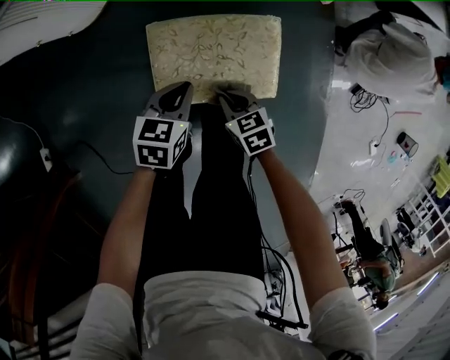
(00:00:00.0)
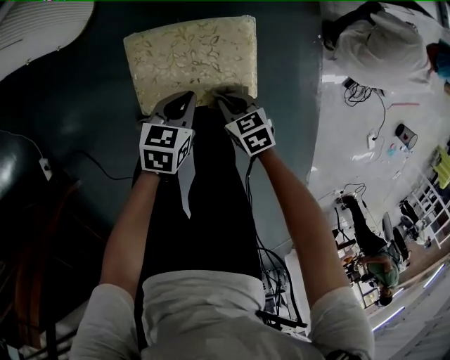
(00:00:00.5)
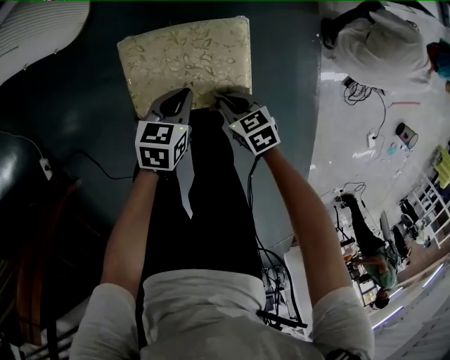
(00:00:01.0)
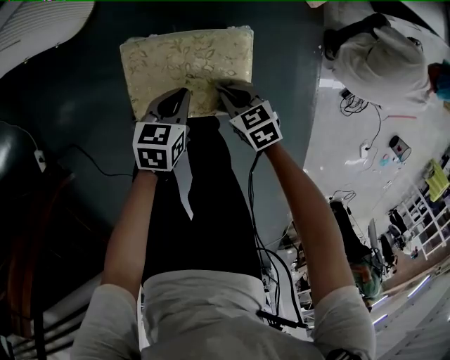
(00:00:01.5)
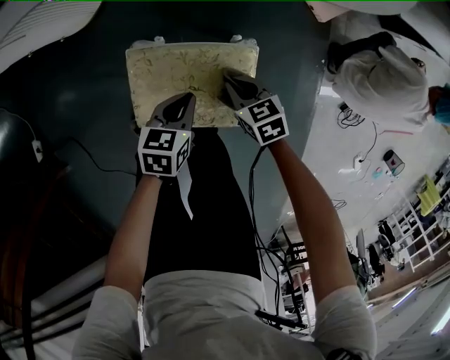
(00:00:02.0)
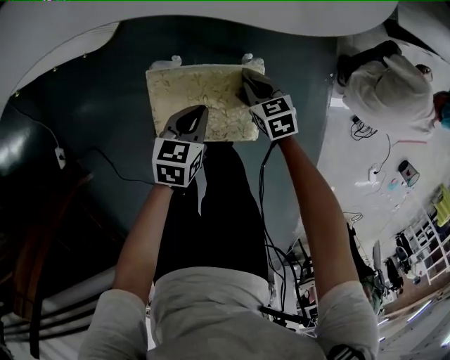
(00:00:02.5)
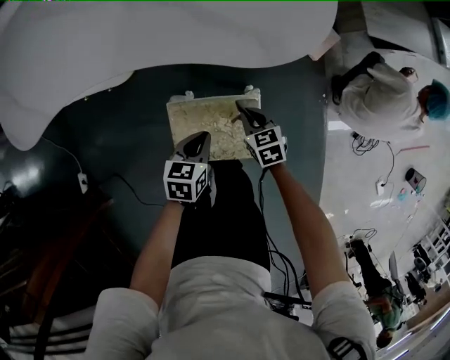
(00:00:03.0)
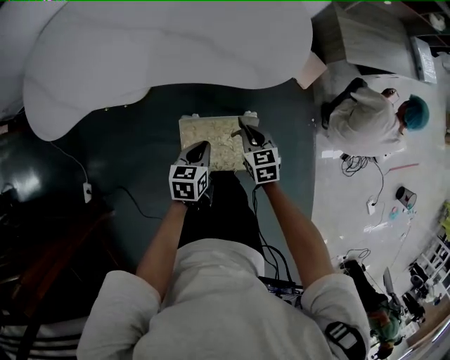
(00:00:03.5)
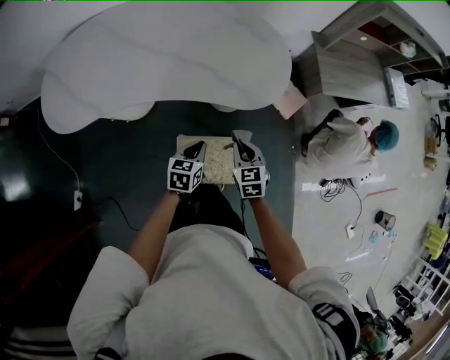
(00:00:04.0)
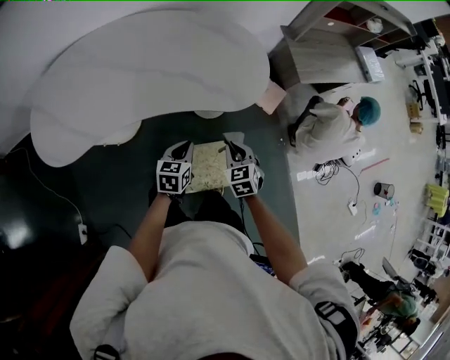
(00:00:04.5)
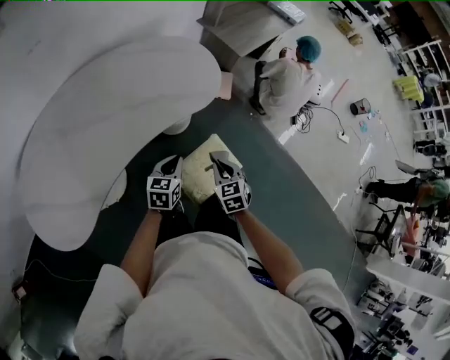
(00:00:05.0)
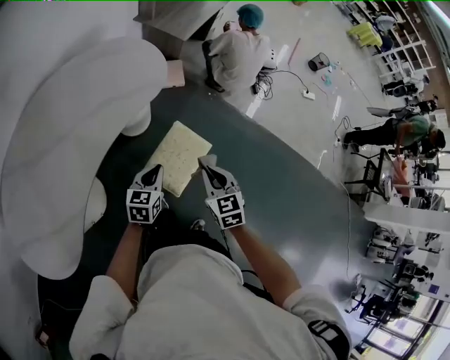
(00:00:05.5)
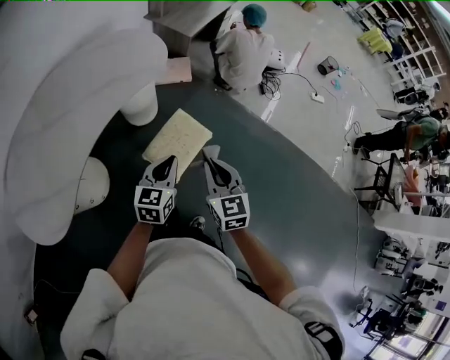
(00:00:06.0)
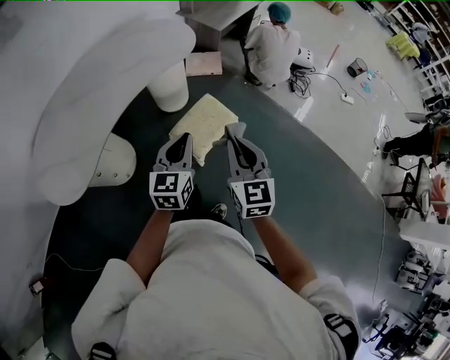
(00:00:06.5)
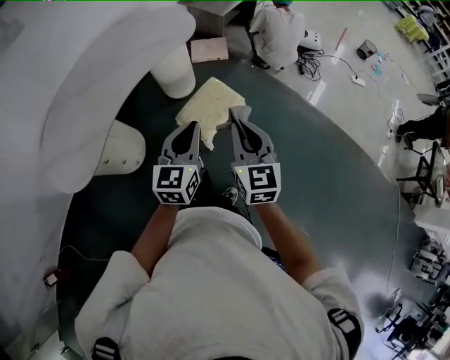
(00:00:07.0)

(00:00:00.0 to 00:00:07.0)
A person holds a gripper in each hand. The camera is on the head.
00:00:00.0 - 00:00:02.0: The right gripper is displaced forward and to the right by about 15 cm. Meanwhile the left gripper moves to the right, approximately 10 cm.
00:00:02.0 - 00:00:03.5: Both grippers move upward, approximately 25 cm. The right gripper changes its angle by some 20 degrees.
00:00:03.5 - 00:00:05.0: The grippers both shift upward by some 15 cm. The right gripper changes its angle by approximately 40 degrees. The left gripper swivels about 40 degrees.
00:00:05.0 - 00:00:07.0: Both grippers travel together backward, upward and to the right, roughly 40 cm. The left gripper rotates approximately 30 degrees, while the right gripper tilts its fingers approximately 30 degrees upward.

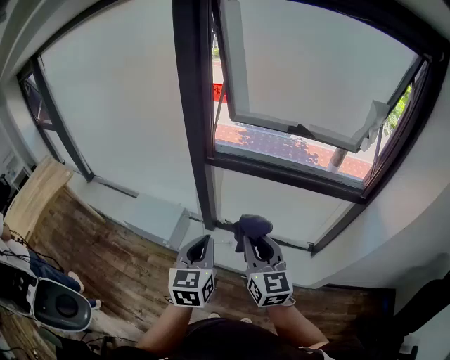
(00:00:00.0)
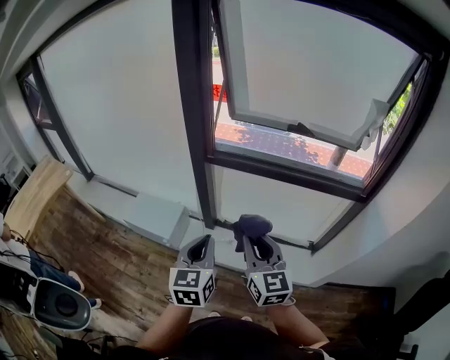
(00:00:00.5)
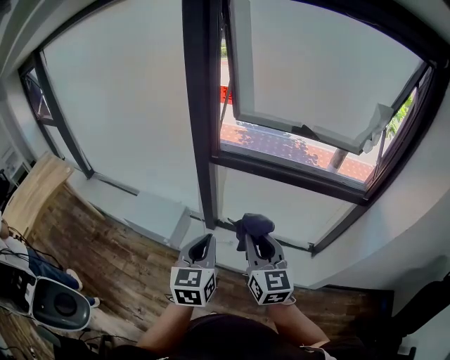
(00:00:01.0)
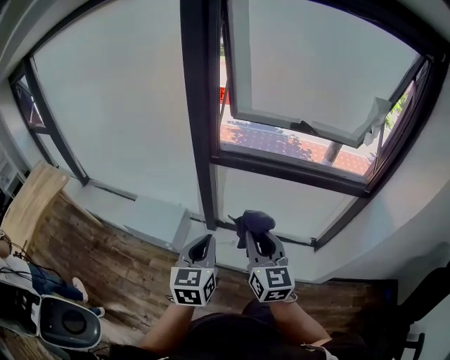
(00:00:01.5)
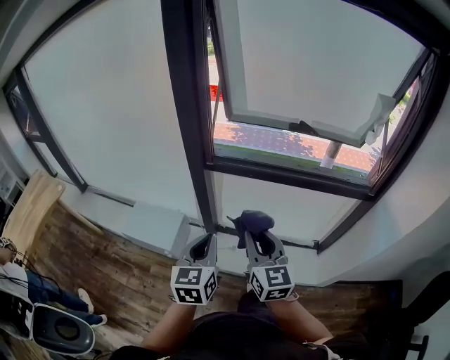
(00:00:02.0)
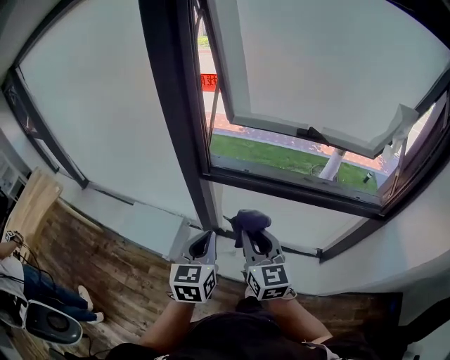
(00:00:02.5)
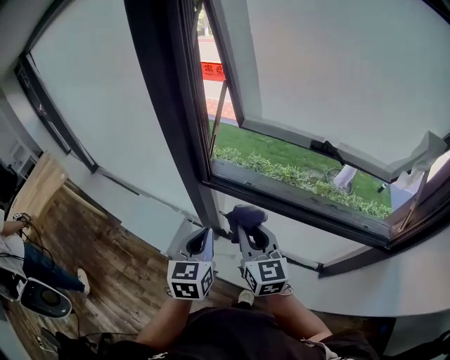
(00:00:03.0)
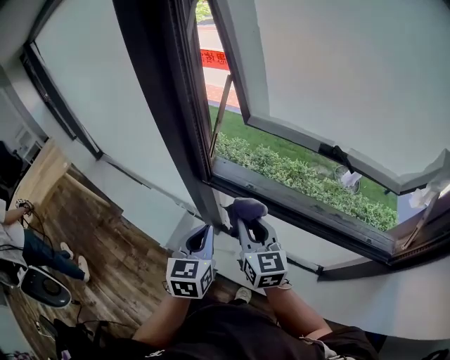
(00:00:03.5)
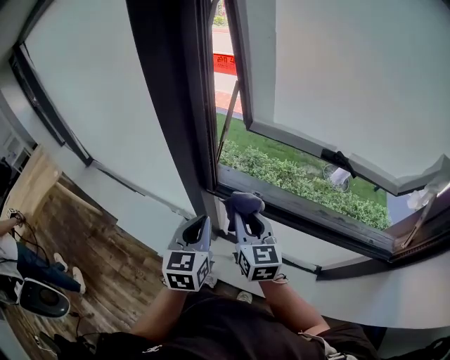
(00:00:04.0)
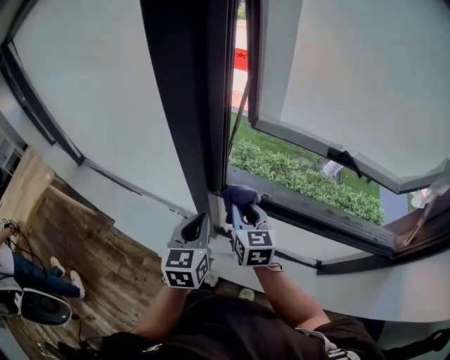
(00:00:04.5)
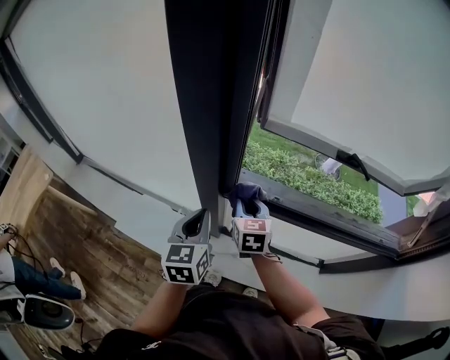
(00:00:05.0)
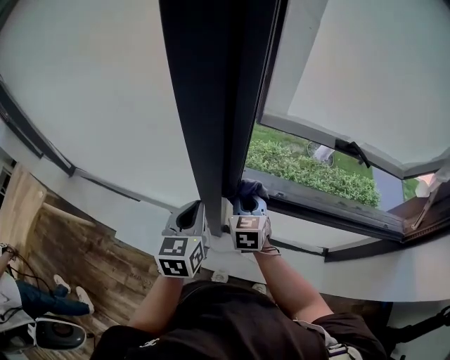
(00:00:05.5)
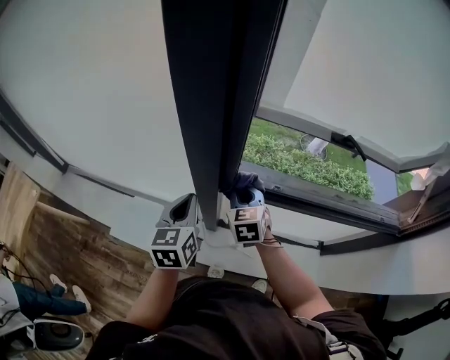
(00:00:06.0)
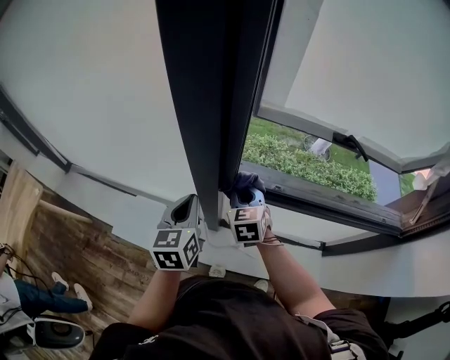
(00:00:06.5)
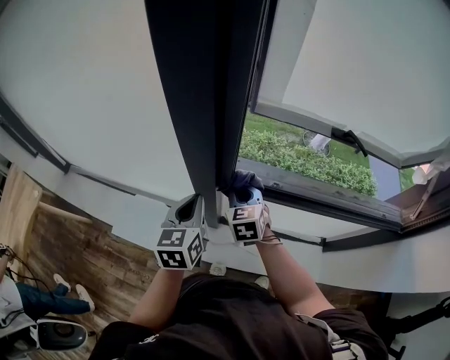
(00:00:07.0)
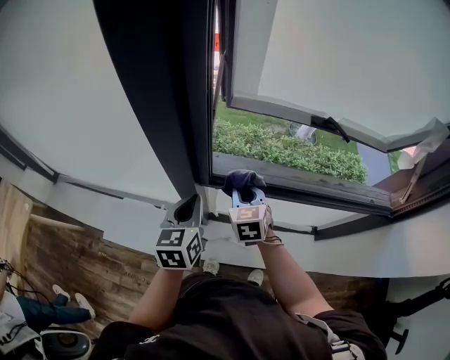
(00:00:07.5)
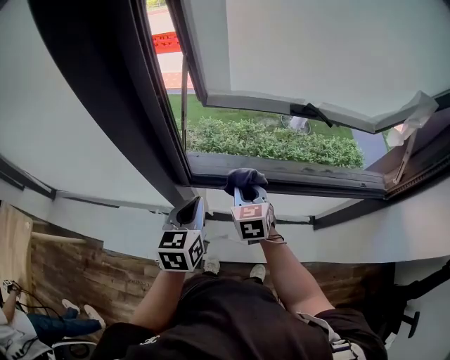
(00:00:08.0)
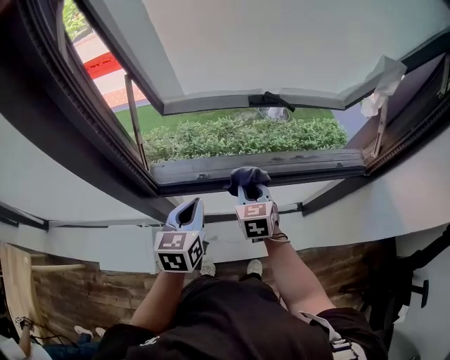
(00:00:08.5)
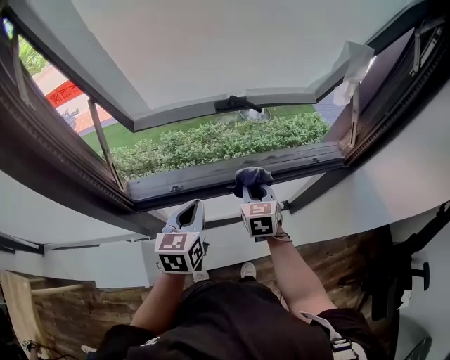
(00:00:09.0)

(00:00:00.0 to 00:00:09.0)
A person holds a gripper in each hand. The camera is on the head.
00:00:00.0 - 00:00:02.0: Both grippers move forward, approximately 5 cm.
00:00:02.0 - 00:00:04.5: The grippers both shift forward by about 30 cm.
00:00:04.5 - 00:00:07.0: The left gripper travels forward and to the left by about 10 cm. Meanwhile the right gripper travels forward and downward by roughly 10 cm, and rotates some 20 degrees.
00:00:07.0 - 00:00:09.0: The right gripper changes place by some 35 cm, and swivels approximately 30 degrees. The left gripper changes place by some 30 cm, and turns by some 30 degrees.

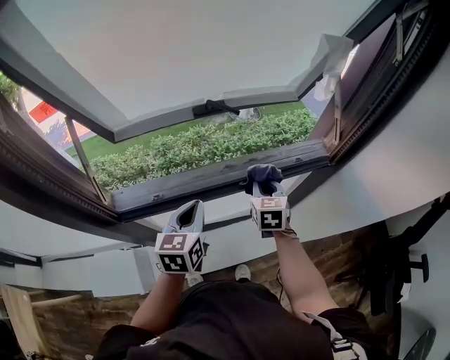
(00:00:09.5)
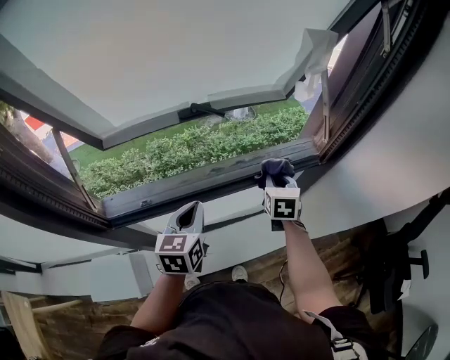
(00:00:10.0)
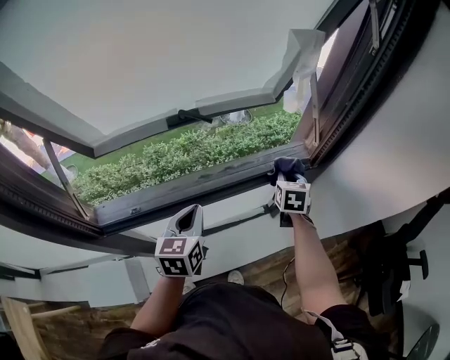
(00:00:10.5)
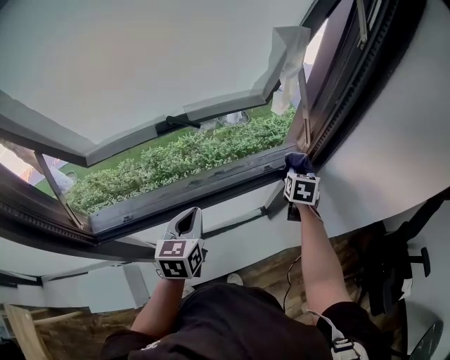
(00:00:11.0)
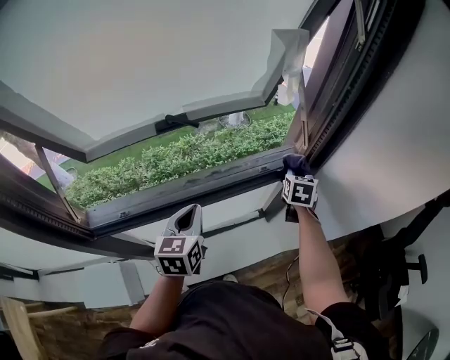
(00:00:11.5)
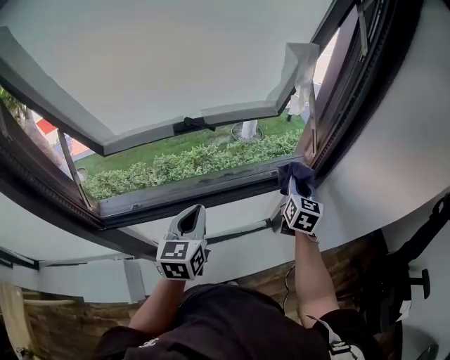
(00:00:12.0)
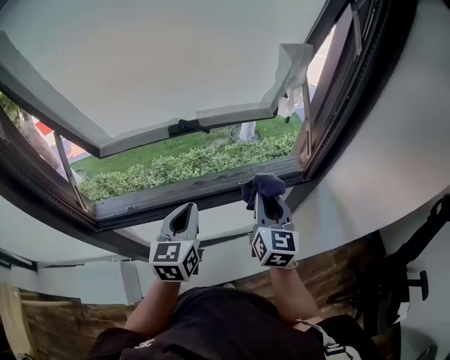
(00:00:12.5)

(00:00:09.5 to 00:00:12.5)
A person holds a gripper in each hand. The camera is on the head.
00:00:09.5 - 00:00:11.0: The left gripper moves to the right and forward, roughly 10 cm. Meanwhile the right gripper moves to the right and forward, about 25 cm, and changes its angle by about 20 degrees.
00:00:11.0 - 00:00:12.5: The left gripper heads upward, covering some 5 cm. The right gripper moves backward, to the left and upward, roughly 20 cm, and angles its fingers upward, by roughly 30 degrees.

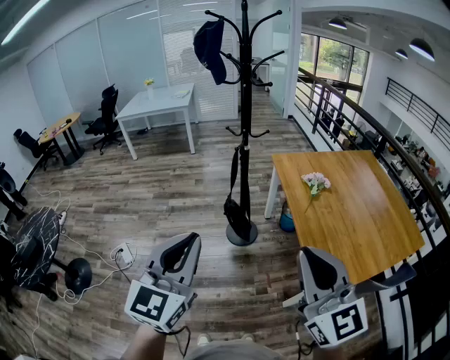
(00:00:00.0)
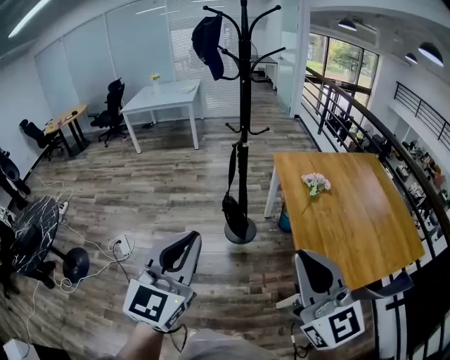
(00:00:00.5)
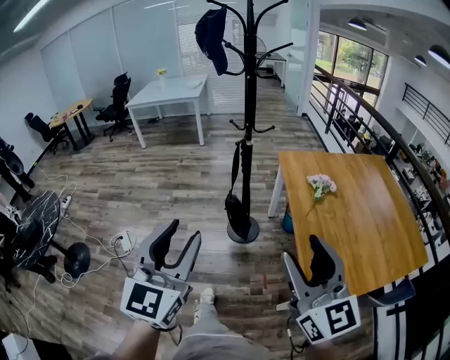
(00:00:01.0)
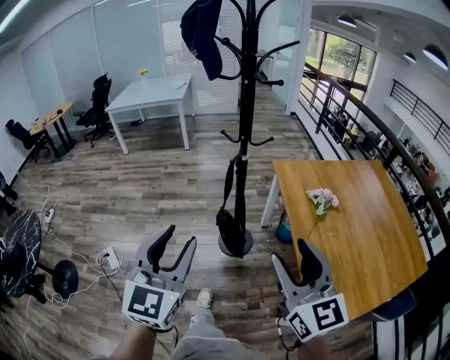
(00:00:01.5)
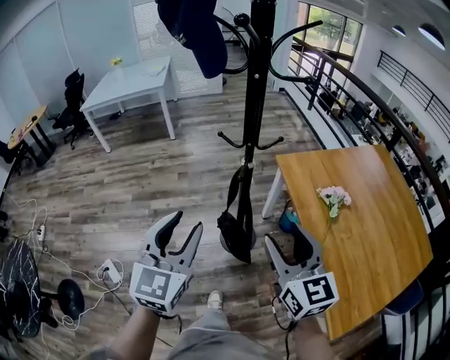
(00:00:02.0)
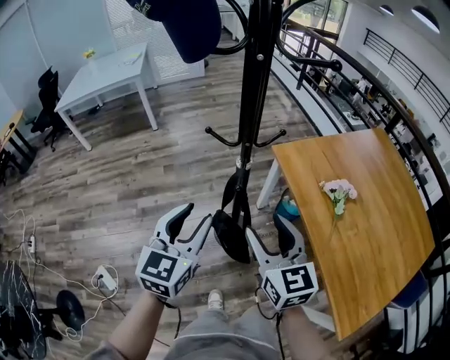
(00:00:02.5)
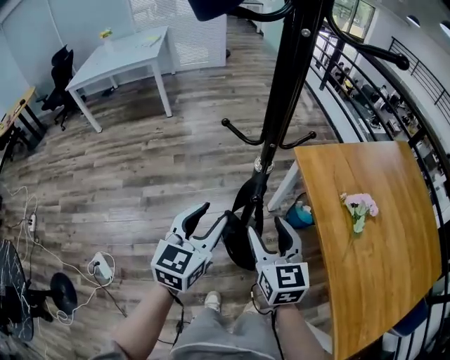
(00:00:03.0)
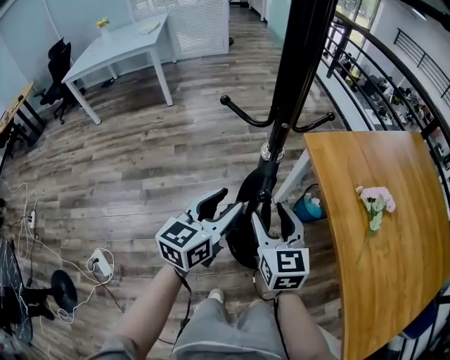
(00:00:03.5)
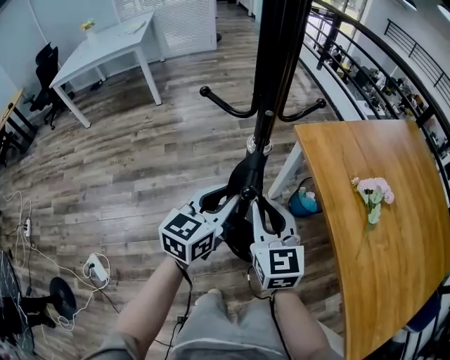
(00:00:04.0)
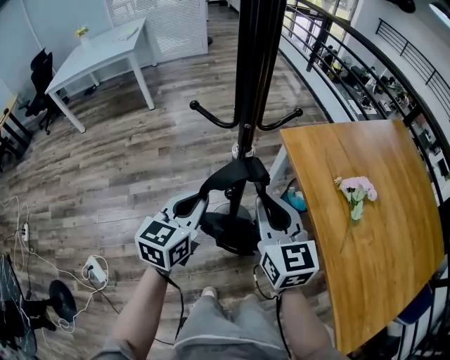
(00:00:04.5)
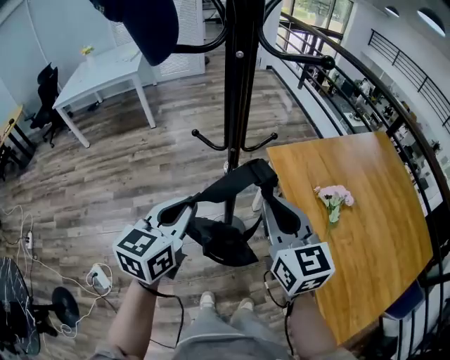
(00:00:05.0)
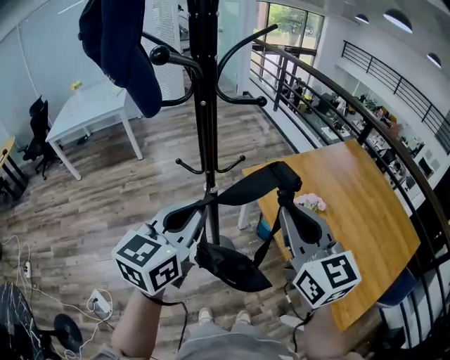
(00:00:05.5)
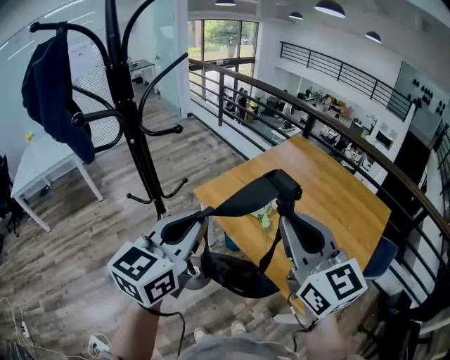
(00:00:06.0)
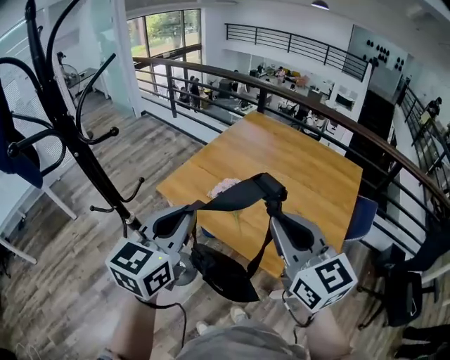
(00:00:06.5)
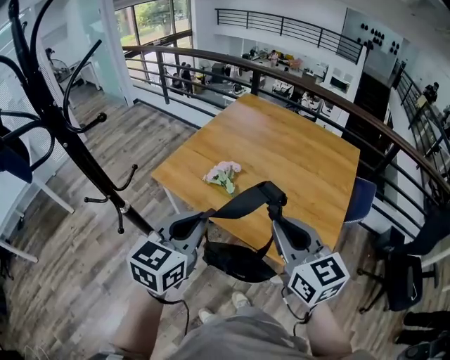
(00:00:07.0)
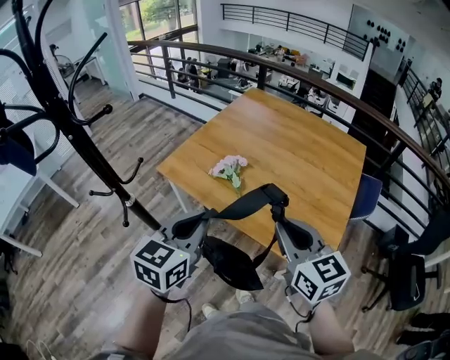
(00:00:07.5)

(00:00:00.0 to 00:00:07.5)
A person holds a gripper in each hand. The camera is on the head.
00:00:00.0 - 00:00:02.0: Both grippers travel together forward, some 35 cm. The left gripper opens up, while the right gripper opens up.
00:00:02.0 - 00:00:04.0: The two grippers go about 35 cm downward and forward. The right gripper closes, while the left gripper turns by about 30 degrees.
00:00:04.0 - 00:00:05.5: The left gripper moves upward, about 30 cm, and closes, while the right gripper moves upward and to the right, approximately 35 cm.
00:00:05.5 - 00:00:07.5: The left gripper moves roughly 20 cm, and changes its angle by some 40 degrees, while the right gripper changes place by approximately 25 cm, and swivels some 30 degrees.
